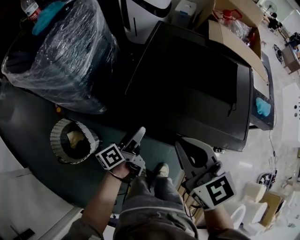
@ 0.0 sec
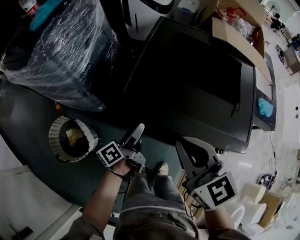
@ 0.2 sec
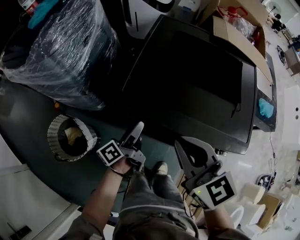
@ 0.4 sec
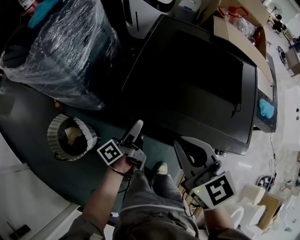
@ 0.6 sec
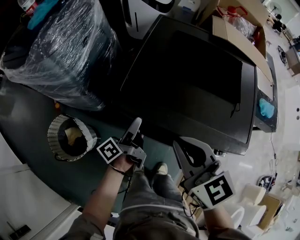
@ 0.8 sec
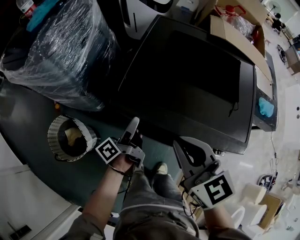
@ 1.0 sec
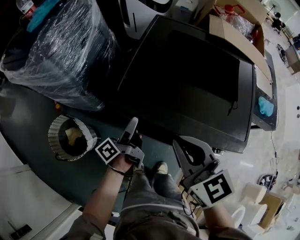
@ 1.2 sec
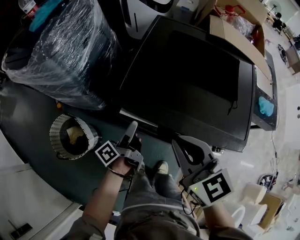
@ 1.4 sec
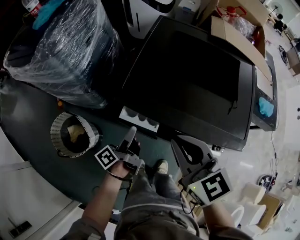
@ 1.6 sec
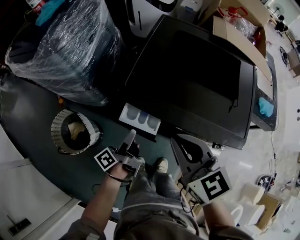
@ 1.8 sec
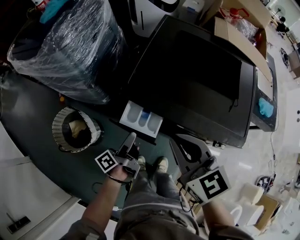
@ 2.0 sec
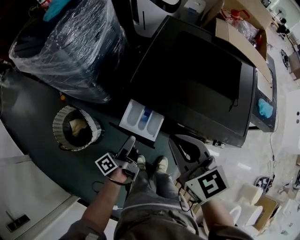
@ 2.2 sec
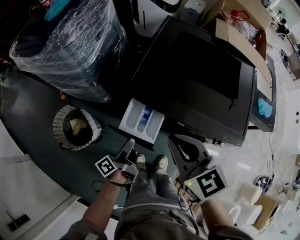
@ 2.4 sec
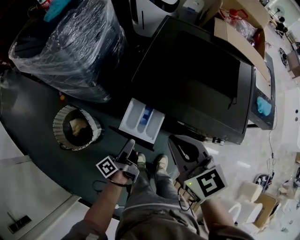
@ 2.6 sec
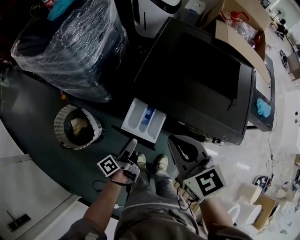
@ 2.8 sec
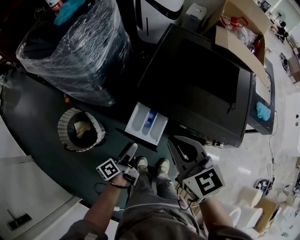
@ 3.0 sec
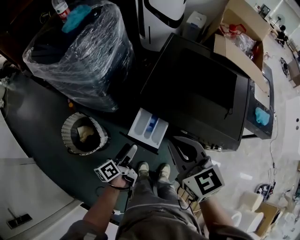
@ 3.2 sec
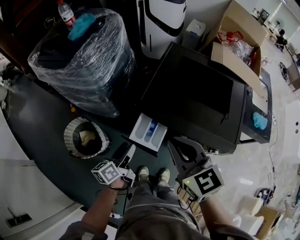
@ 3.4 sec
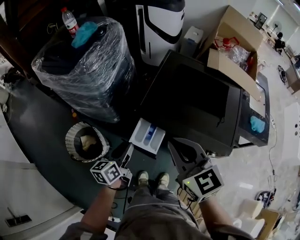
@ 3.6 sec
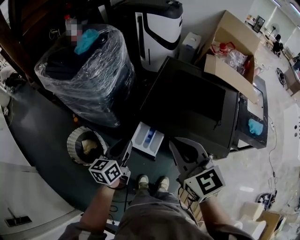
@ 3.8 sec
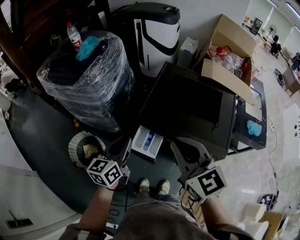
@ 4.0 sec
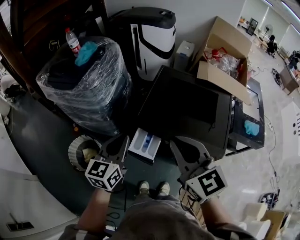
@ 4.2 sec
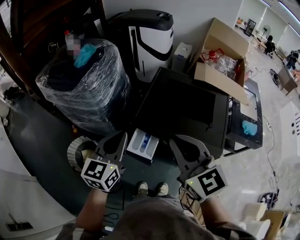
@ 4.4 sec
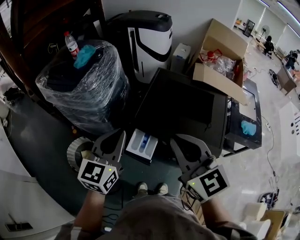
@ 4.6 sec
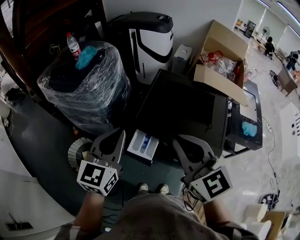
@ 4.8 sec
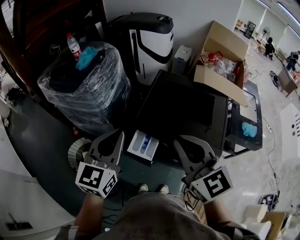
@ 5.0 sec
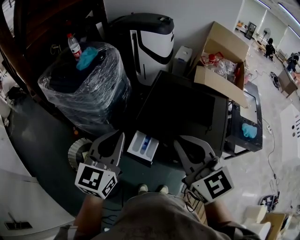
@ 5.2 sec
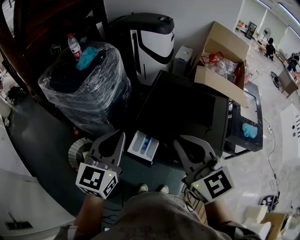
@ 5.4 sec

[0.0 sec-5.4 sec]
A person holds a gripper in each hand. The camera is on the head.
0.0 sec to 1.4 sec: The grippers move only a little.
1.4 sec to 2.8 sec: The right gripper changes place by approximately 5 cm. Meanwhile the left gripper goes some 10 cm backward and to the left.
2.8 sec to 4.0 sec: The left gripper shifts about 25 cm upward, rolls clockwise, seen from behind, by about 60 degrees, and closes up, while the right gripper goes about 15 cm upward.
4.0 sec to 5.4 sec: The right gripper moves upward, some 5 cm; the left gripper travels upward by some 15 cm, and rotates some 30 degrees.

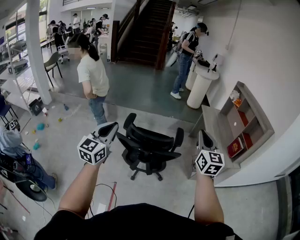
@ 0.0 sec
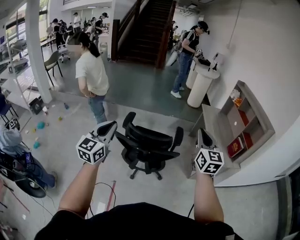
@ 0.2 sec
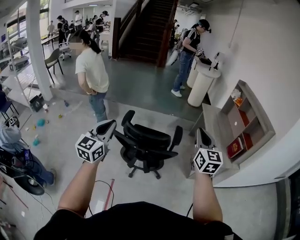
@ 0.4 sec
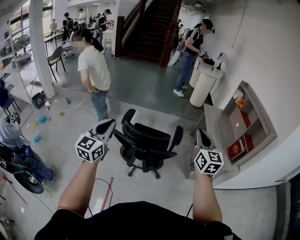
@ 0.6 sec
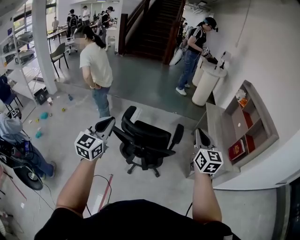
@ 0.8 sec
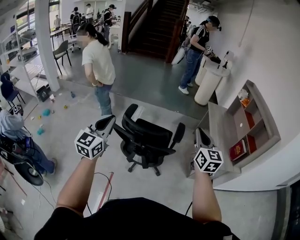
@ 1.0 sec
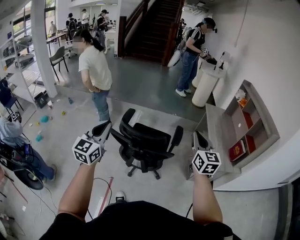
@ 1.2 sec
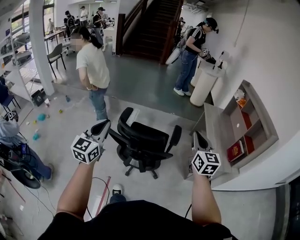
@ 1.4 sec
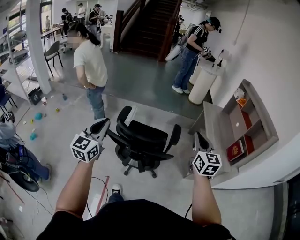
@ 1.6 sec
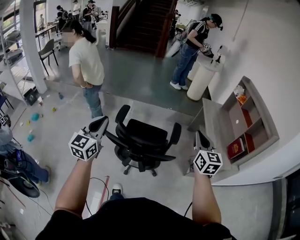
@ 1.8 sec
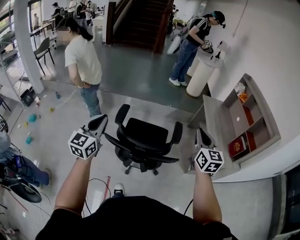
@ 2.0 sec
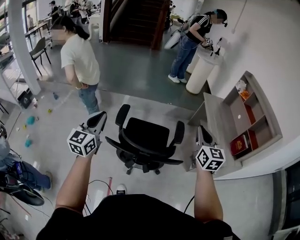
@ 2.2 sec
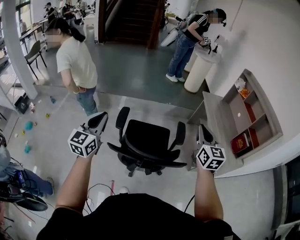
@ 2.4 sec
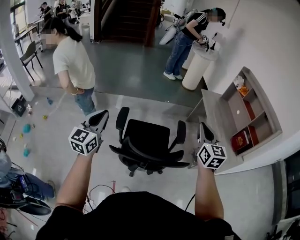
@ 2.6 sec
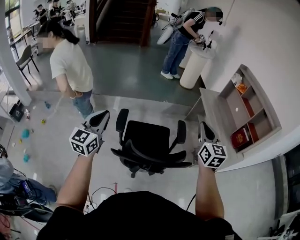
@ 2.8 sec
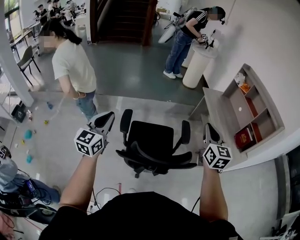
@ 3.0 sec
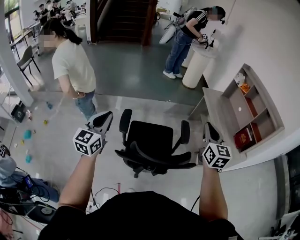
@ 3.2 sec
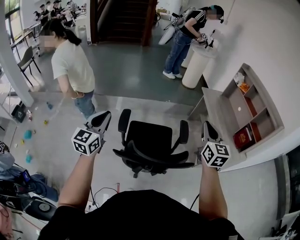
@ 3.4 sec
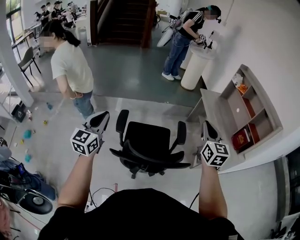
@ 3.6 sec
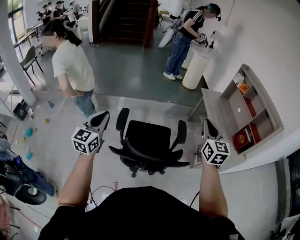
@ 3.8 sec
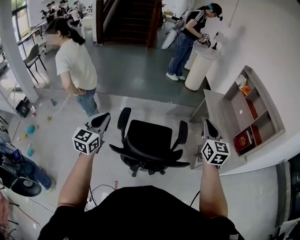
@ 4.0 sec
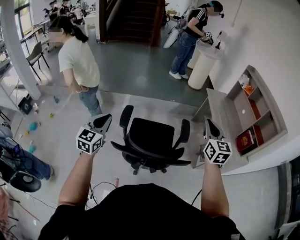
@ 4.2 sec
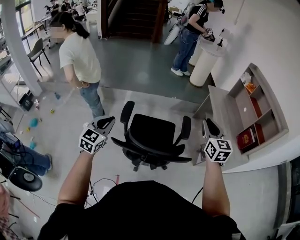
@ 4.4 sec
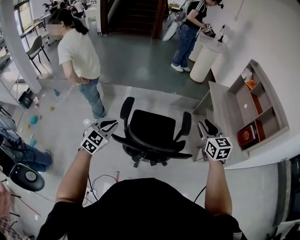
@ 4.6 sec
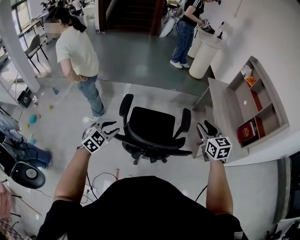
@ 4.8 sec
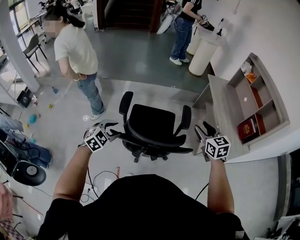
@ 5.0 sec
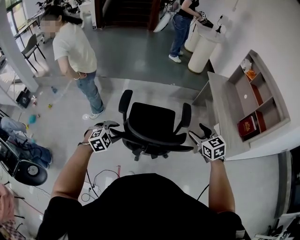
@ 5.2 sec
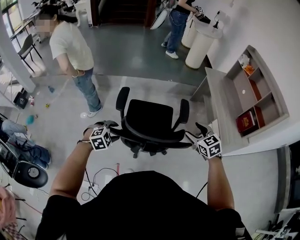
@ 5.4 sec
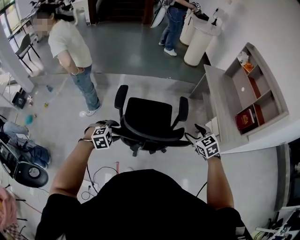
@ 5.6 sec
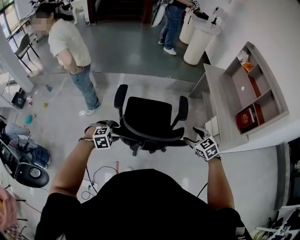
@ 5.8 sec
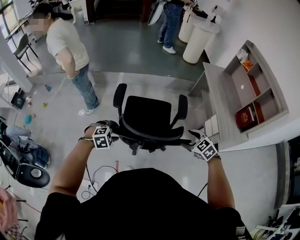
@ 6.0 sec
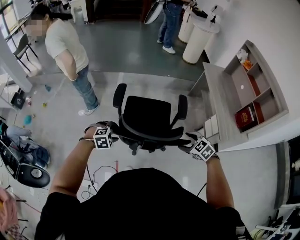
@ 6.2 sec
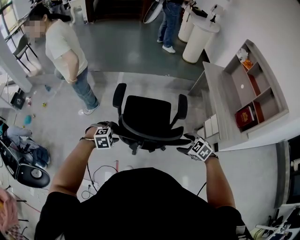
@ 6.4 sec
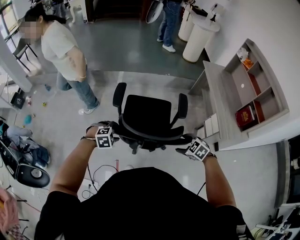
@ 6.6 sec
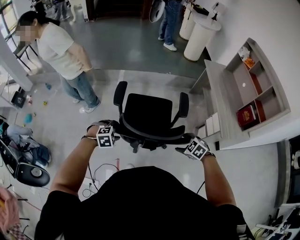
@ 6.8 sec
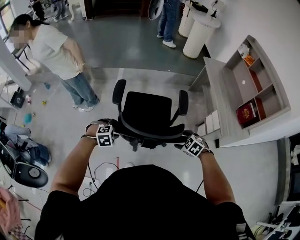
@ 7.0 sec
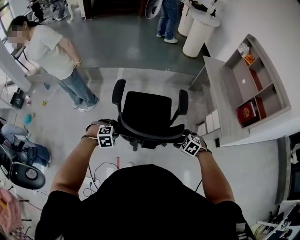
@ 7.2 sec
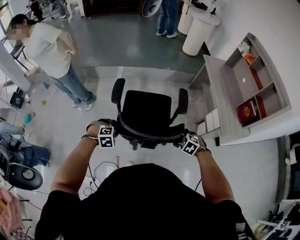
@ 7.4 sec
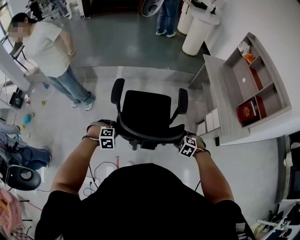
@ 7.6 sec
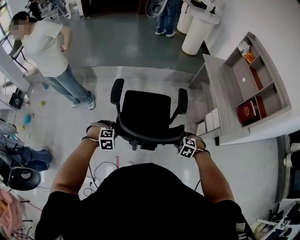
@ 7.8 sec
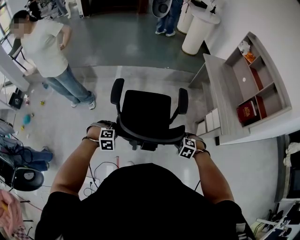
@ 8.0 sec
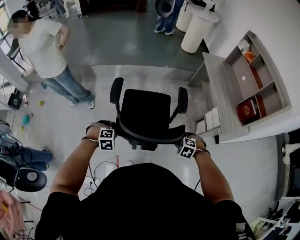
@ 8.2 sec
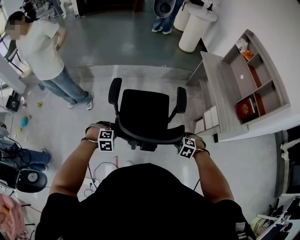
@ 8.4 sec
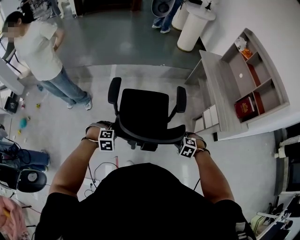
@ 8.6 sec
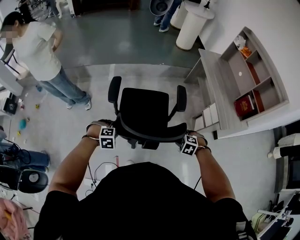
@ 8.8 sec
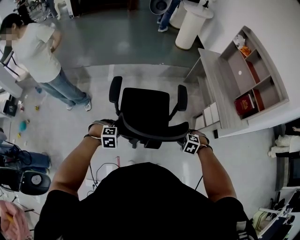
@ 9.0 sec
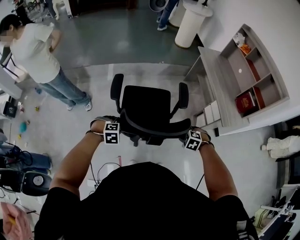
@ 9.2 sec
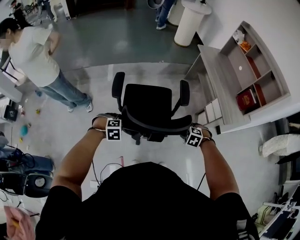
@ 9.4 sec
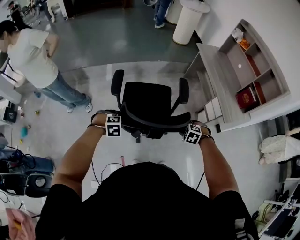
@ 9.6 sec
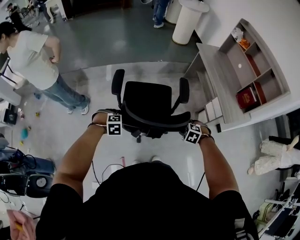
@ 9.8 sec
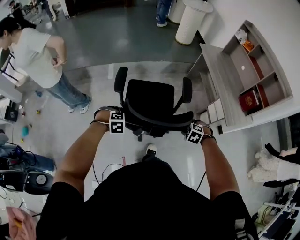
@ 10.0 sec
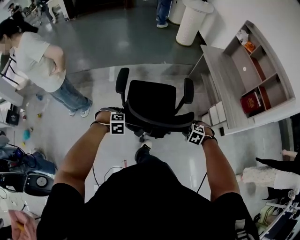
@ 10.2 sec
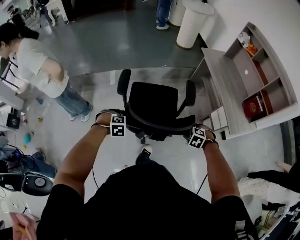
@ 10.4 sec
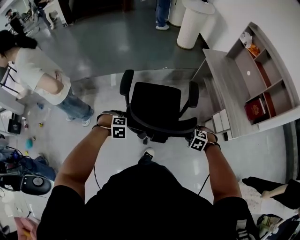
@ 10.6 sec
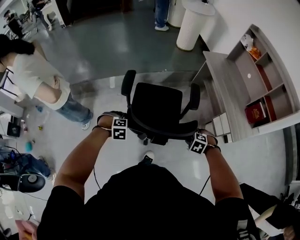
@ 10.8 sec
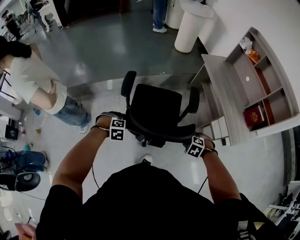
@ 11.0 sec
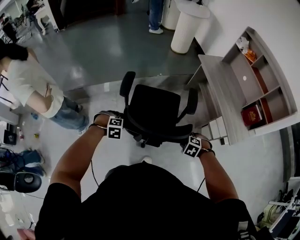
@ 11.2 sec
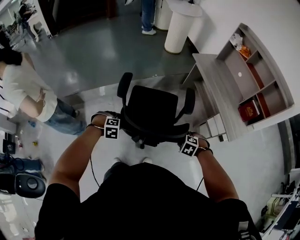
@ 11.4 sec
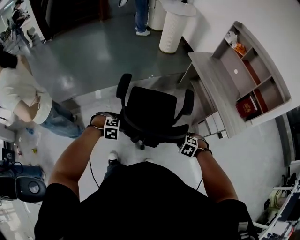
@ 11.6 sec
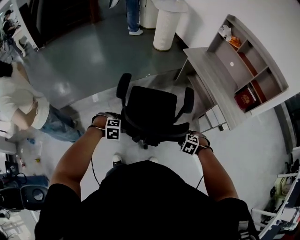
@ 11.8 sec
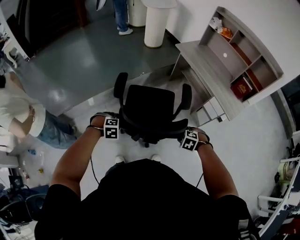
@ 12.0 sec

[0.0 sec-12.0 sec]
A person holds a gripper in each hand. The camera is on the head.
0.0 sec to 1.6 sec: The right gripper travels forward and downward by roughly 10 cm, while the left gripper is displaced forward by about 5 cm.
1.6 sec to 3.0 sec: Both grippers move forward and to the left, roughly 20 cm.
3.0 sec to 4.4 sec: The left gripper moves downward, about 10 cm; the right gripper changes place by some 5 cm.
4.4 sec to 6.0 sec: Both grippers travel together downward, roughly 25 cm. The left gripper tips its fingers downward by roughly 50 degrees, and opens, while the right gripper points its fingers approximately 40 degrees further downward, and opens its fingers.
6.0 sec to 7.6 sec: The right gripper shifts roughly 10 cm downward, and rotates about 30 degrees; the left gripper shifts roughly 5 cm downward, and closes its fingers.
7.6 sec to 9.0 sec: The grippers move only a little.
9.0 sec to 10.4 sec: The left gripper changes place by roughly 15 cm, while the right gripper ends up about 10 cm from where it was.
10.4 sec to 12.0 sec: The right gripper changes place by roughly 15 cm, and rotates some 20 degrees; the left gripper ends up about 20 cm from where it was, and turns by approximately 20 degrees.

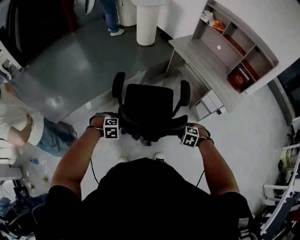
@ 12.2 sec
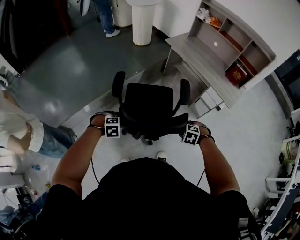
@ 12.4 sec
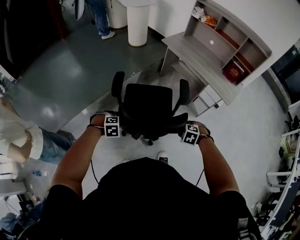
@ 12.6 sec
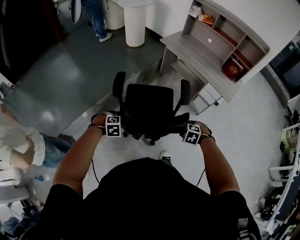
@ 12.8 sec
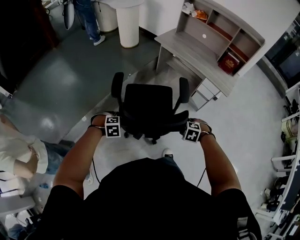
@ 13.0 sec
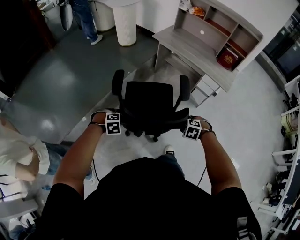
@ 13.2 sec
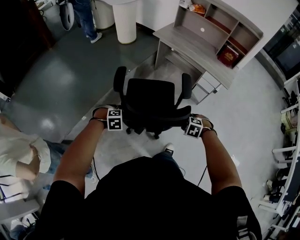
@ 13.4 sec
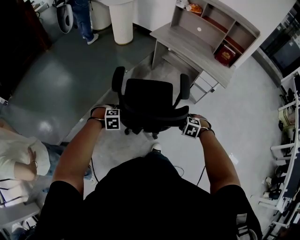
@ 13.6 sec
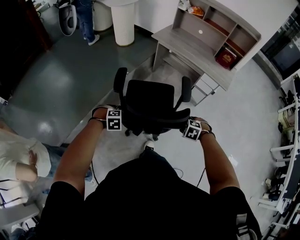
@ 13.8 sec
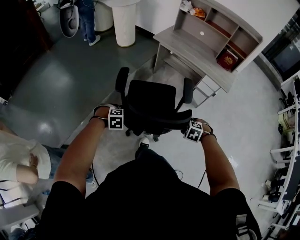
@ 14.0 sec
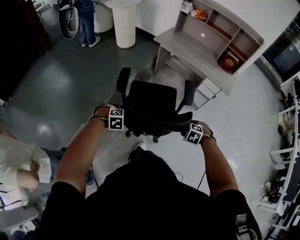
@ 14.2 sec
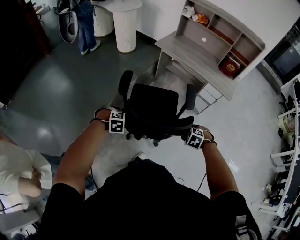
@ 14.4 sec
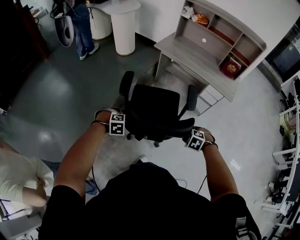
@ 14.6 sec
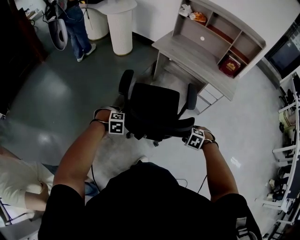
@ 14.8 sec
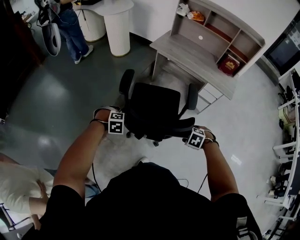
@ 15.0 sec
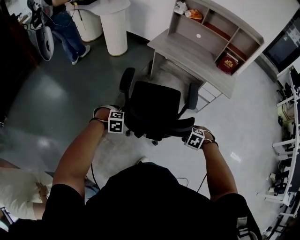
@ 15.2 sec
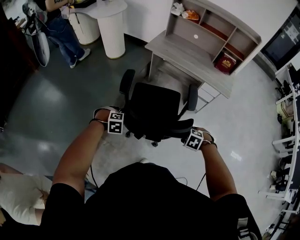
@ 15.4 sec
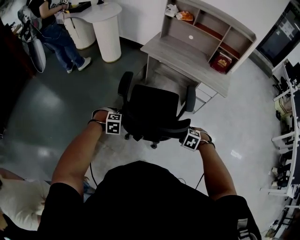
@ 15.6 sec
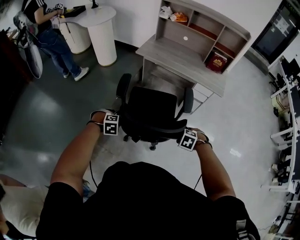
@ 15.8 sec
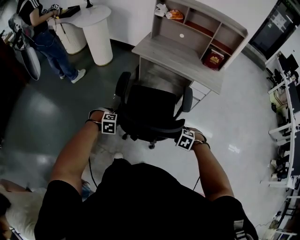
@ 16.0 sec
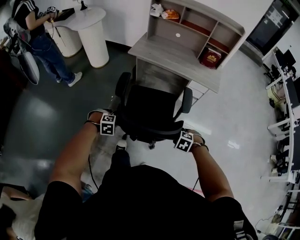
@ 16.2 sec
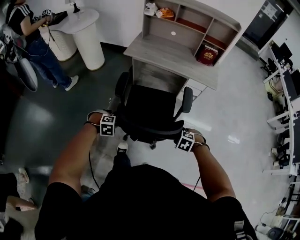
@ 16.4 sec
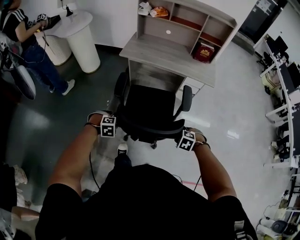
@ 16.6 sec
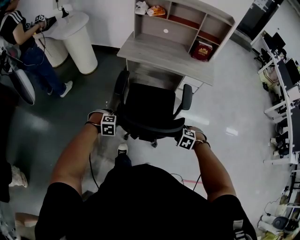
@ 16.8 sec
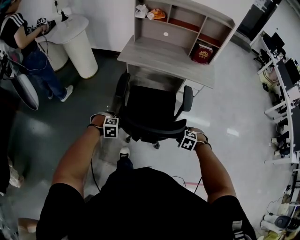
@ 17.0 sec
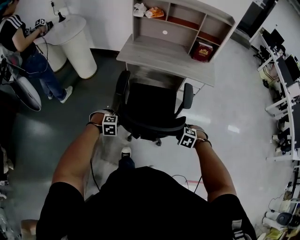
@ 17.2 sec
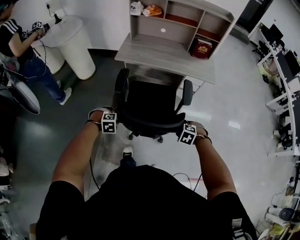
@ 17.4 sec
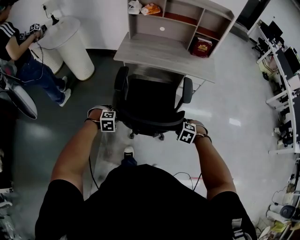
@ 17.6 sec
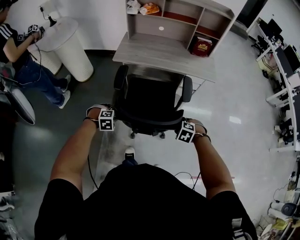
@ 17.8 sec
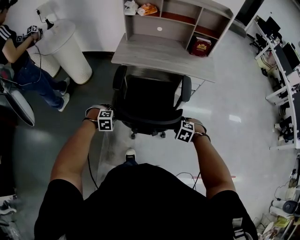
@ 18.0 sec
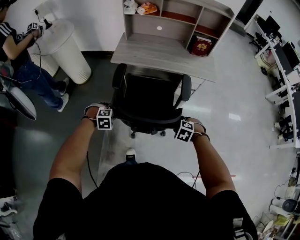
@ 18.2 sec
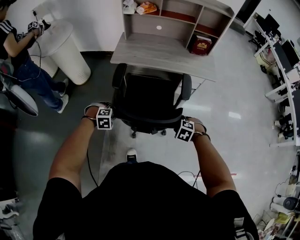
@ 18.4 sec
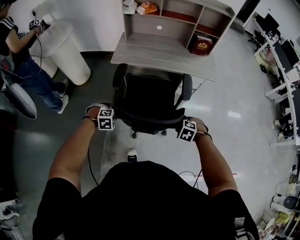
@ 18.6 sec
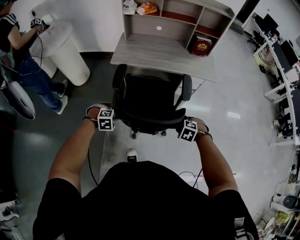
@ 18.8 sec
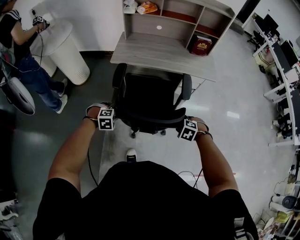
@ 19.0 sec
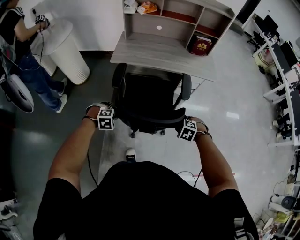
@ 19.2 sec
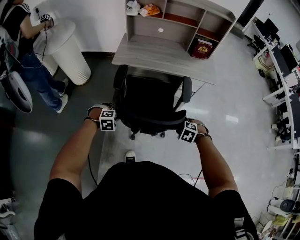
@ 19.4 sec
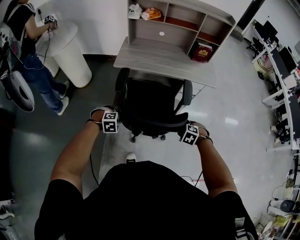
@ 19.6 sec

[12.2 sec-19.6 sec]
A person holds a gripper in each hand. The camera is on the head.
12.2 sec to 13.6 sec: The left gripper changes place by about 10 cm; the right gripper ends up roughly 10 cm from where it was.
13.6 sec to 15.2 sec: The right gripper changes place by roughly 10 cm, while the left gripper shifts by about 20 cm.
15.2 sec to 16.6 sec: The left gripper shifts by roughly 10 cm.
16.6 sec to 18.2 sec: The right gripper ends up roughly 15 cm from where it was; the left gripper ends up roughly 20 cm from where it was.
18.2 sec to 19.6 sec: Neither gripper changes place.
